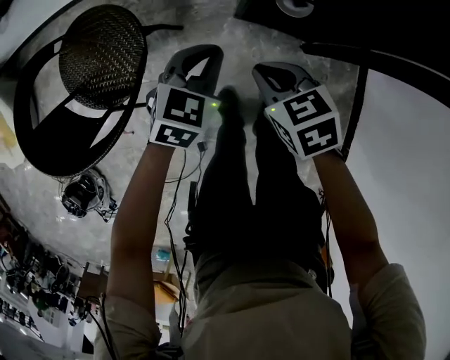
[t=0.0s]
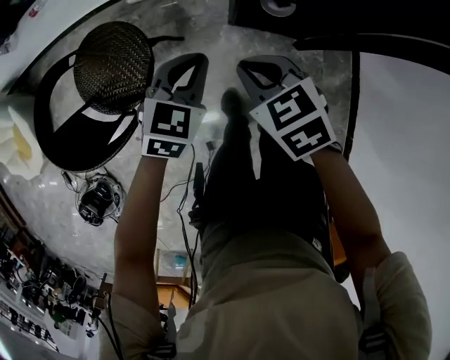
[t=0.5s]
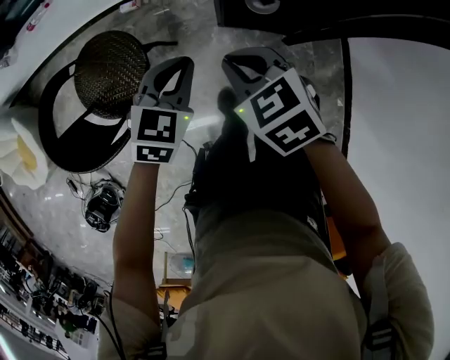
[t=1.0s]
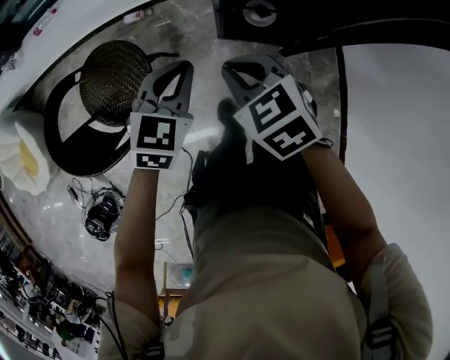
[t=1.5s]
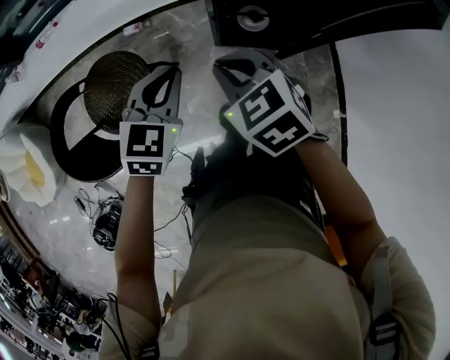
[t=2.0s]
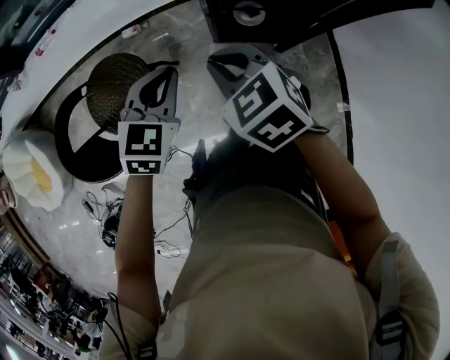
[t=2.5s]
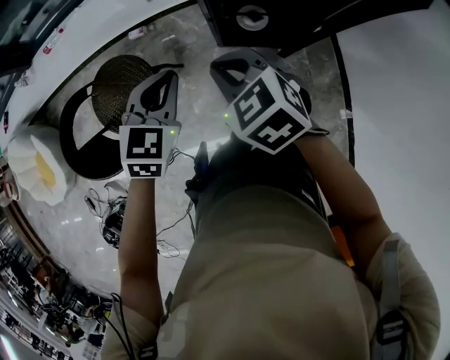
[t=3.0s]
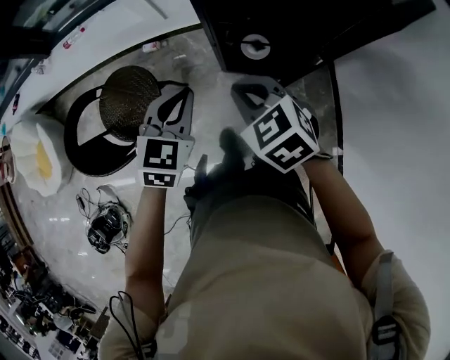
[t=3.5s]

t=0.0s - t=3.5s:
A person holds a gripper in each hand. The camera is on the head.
t=0.0s - t=2.0s: The grippers both shift upward by roughly 20 cm.
t=2.0s - t=3.5s: Both grippers travel together to the right, some 5 cm.

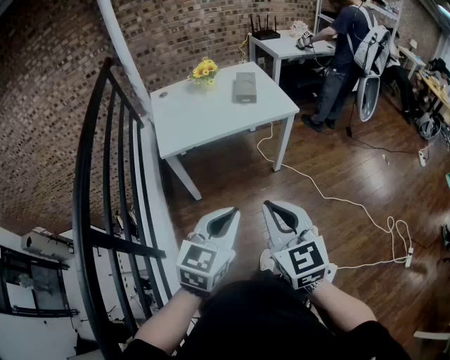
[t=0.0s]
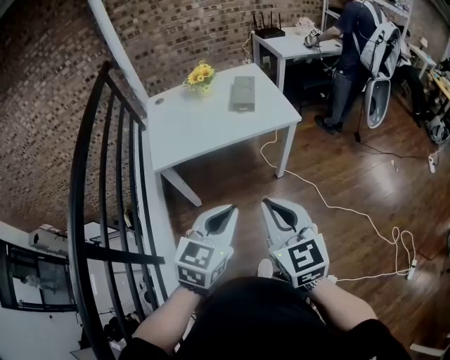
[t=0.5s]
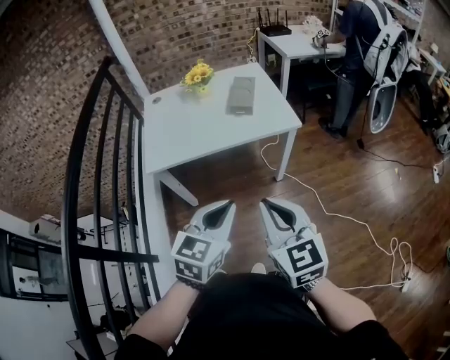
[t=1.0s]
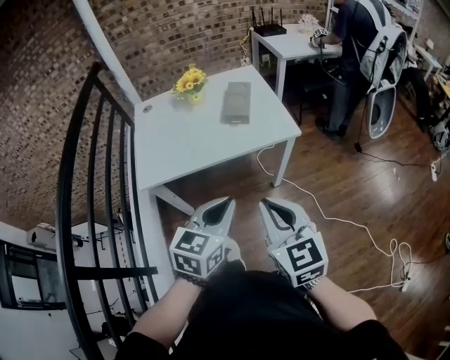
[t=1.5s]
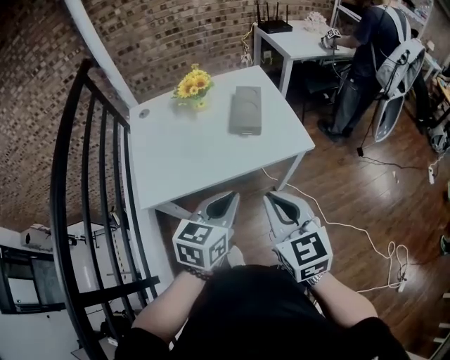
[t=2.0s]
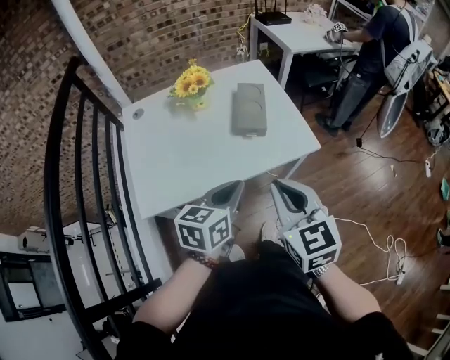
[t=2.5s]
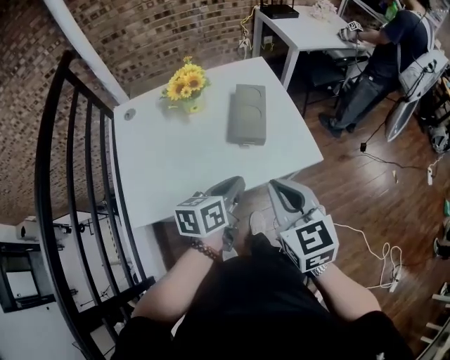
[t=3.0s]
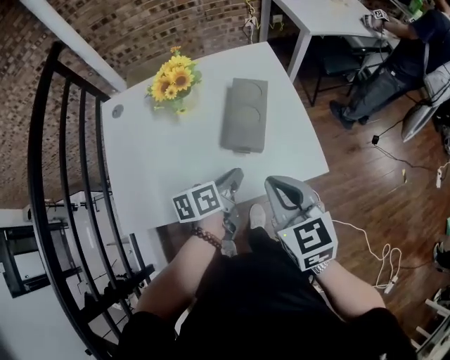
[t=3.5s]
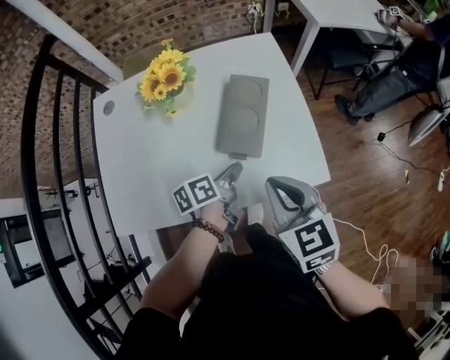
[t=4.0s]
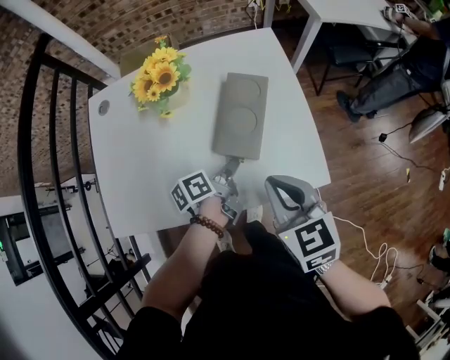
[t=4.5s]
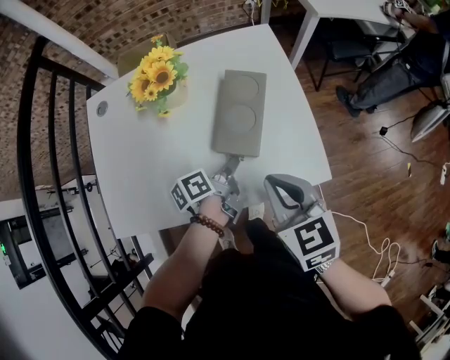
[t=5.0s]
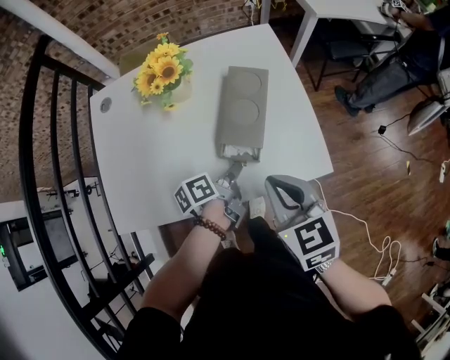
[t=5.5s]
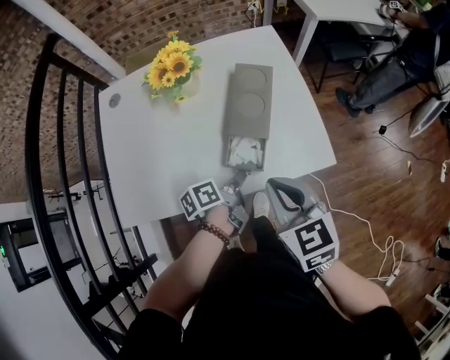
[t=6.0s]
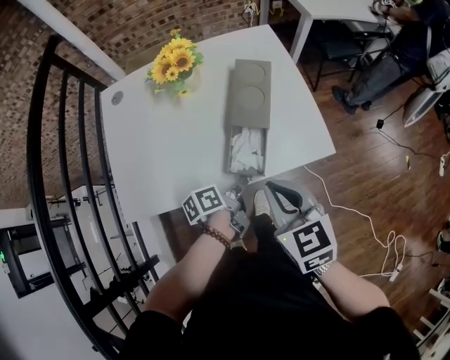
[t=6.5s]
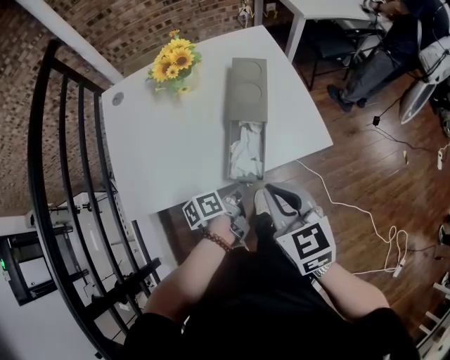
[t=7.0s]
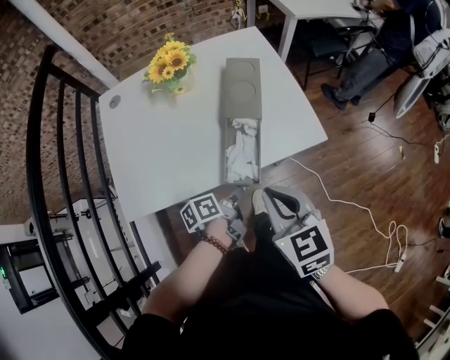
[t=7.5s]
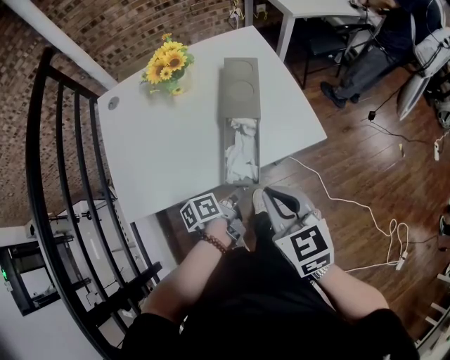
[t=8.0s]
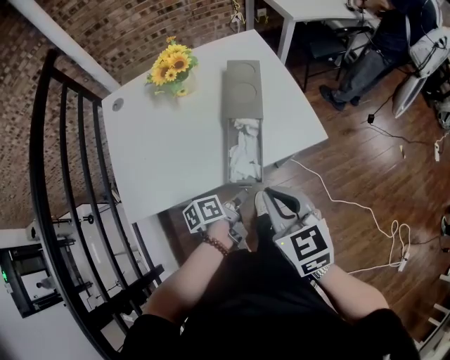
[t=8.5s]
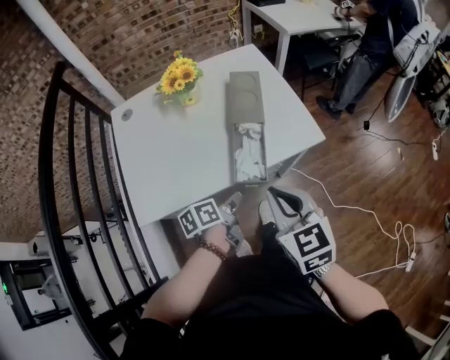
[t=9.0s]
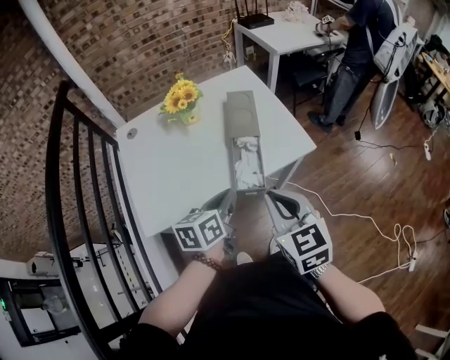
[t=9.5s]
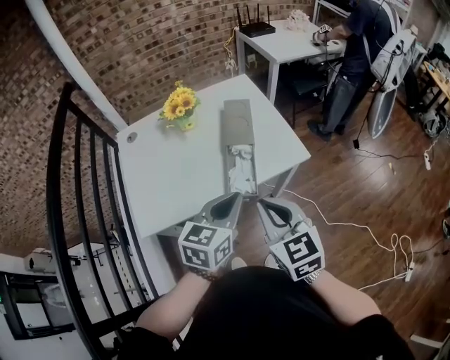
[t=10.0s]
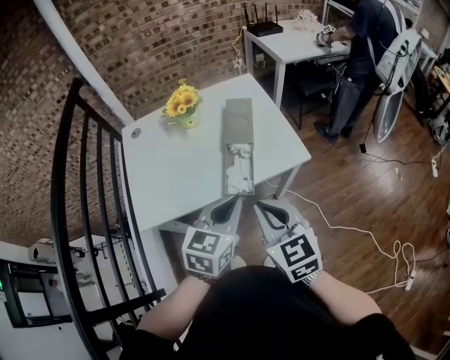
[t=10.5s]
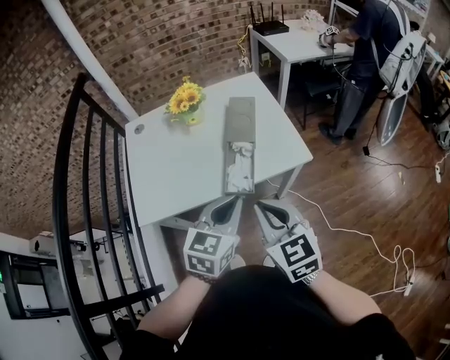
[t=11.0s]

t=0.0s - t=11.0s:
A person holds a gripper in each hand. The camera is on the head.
t=0.0s - t=2.0s: The two grippers go approximately 35 cm forward.
t=2.0s - t=3.5s: The left gripper goes some 30 cm forward and downward, and rolls counterclockwise, seen from behind, by roughly 50 degrees, while the right gripper moves forward, roughly 25 cm.
t=3.5s - t=5.5s: The left gripper shifts approximately 10 cm downward, and swivels some 20 degrees.
t=5.5s - t=7.5s: The grippers both shift backward by approximately 15 cm.
t=7.5s - t=9.0s: The left gripper moves roughly 5 cm.
t=9.0s - t=11.0s: The right gripper shifts by some 5 cm. Meanwhile the left gripper shifts roughly 20 cm upward, and twists approximately 60 degrees clockwise, seen from behind.

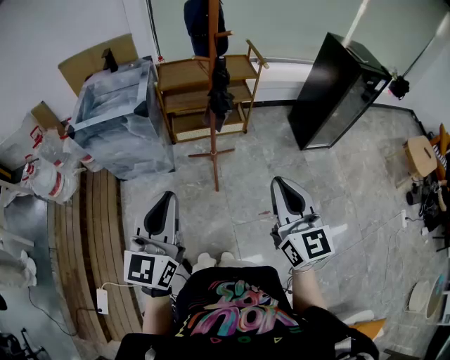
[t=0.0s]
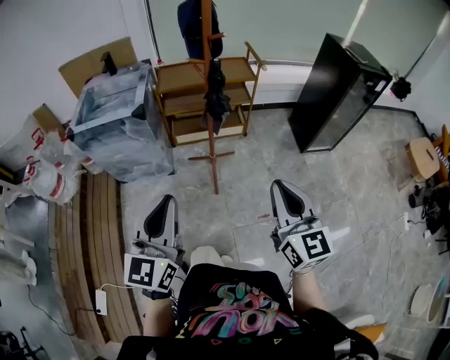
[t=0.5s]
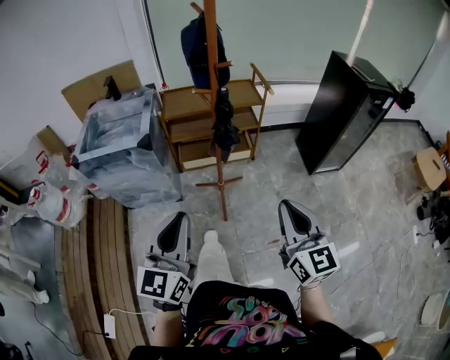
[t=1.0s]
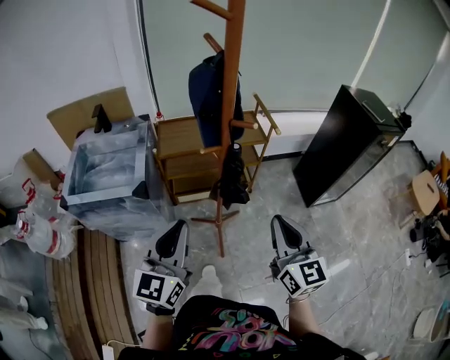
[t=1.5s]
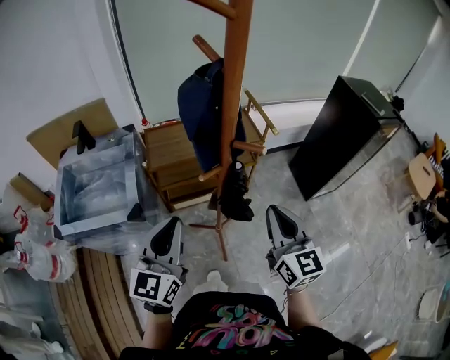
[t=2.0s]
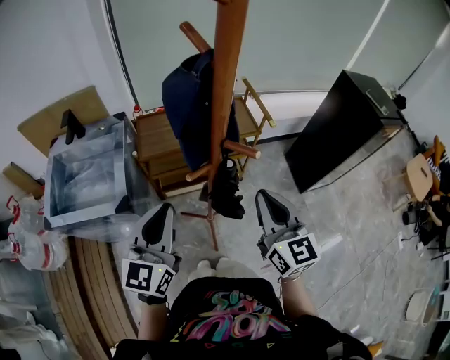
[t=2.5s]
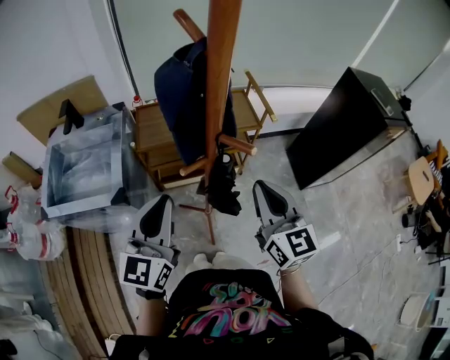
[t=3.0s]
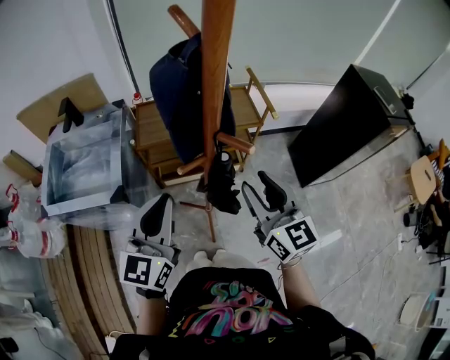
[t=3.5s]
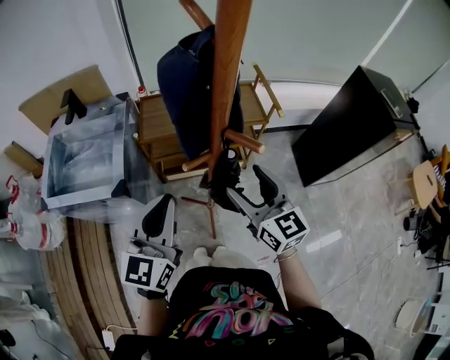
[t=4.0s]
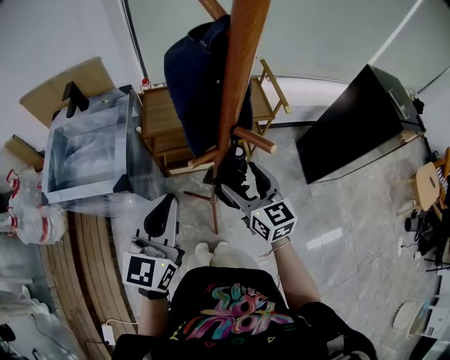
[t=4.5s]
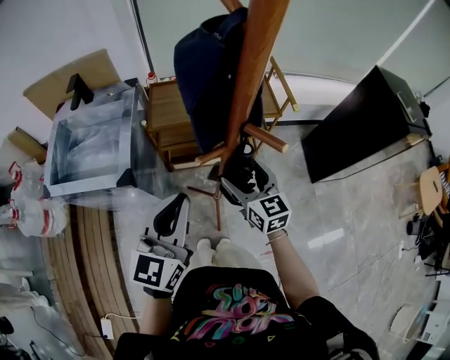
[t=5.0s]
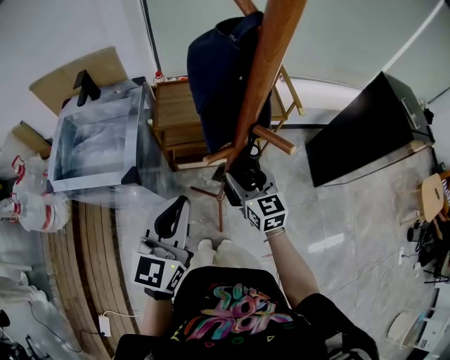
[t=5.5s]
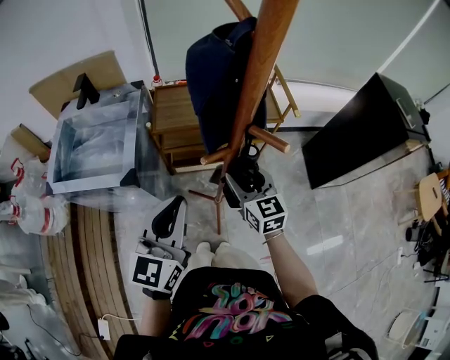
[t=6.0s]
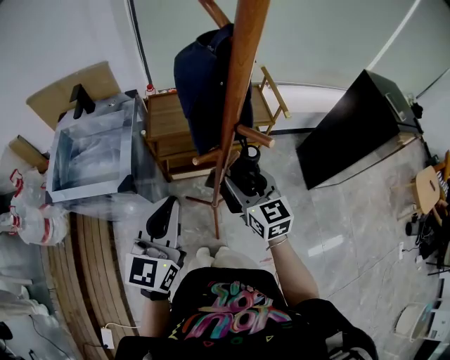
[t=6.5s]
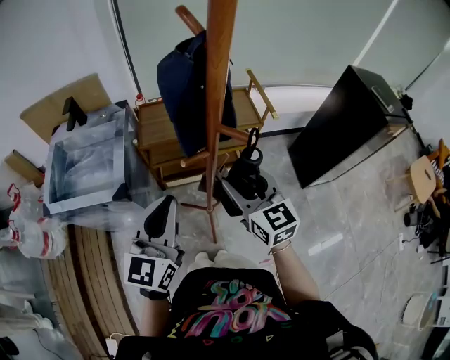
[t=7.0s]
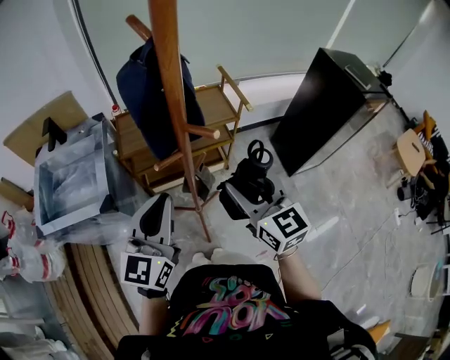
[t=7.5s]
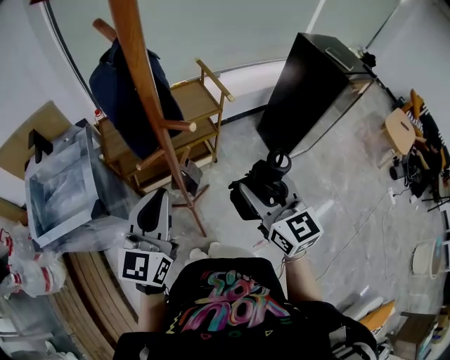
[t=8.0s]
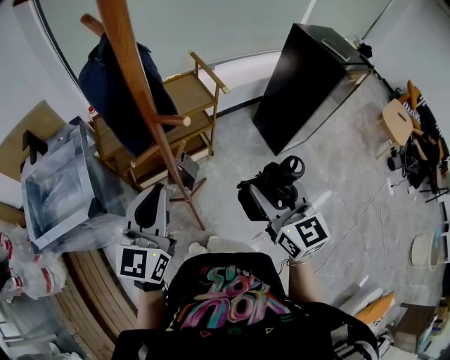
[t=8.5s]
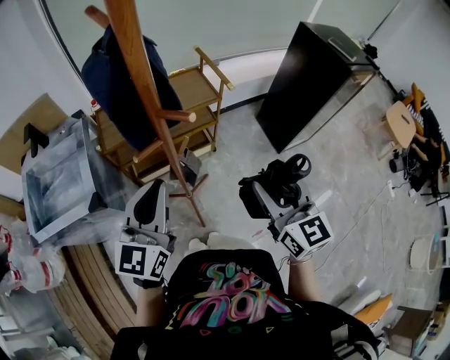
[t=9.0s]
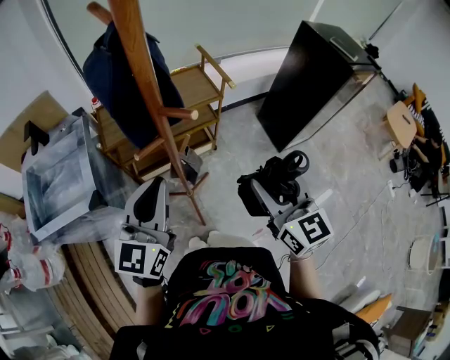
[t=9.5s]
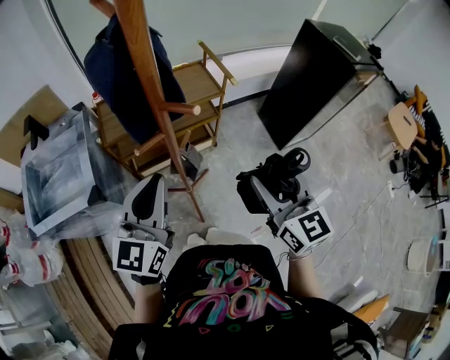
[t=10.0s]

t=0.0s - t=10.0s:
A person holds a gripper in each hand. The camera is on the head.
t=0.0s - t=2.0s: Both grippers are carried forward, approximately 40 cm.
t=2.0s - t=4.0s: The left gripper changes place by about 5 cm. Meanwhile the right gripper is displaced forward by some 10 cm, and opens.
t=4.0s - t=6.0s: The right gripper moves downward, roughly 10 cm.
t=6.0s - t=8.0s: The left gripper shifts approximately 10 cm to the right. The right gripper shifts roughly 25 cm to the right, backward and upward.
t=8.0s - t=10.0s: The grippers make only small movements.

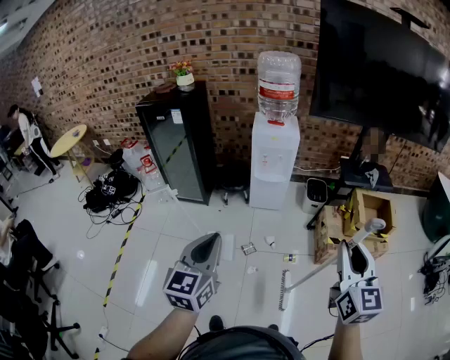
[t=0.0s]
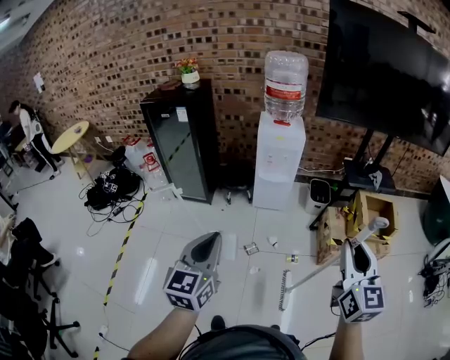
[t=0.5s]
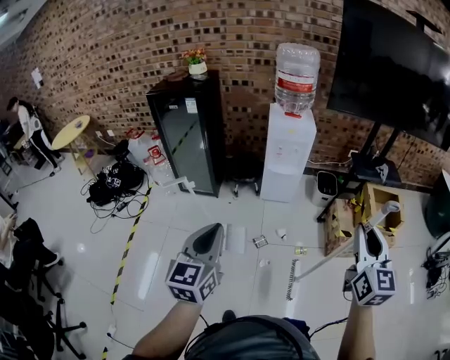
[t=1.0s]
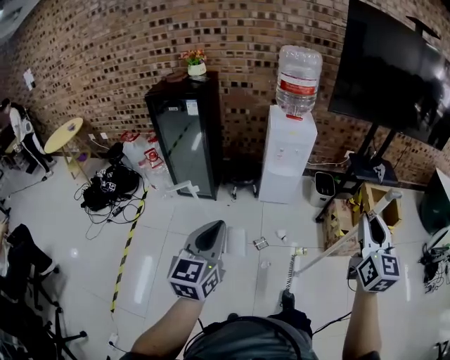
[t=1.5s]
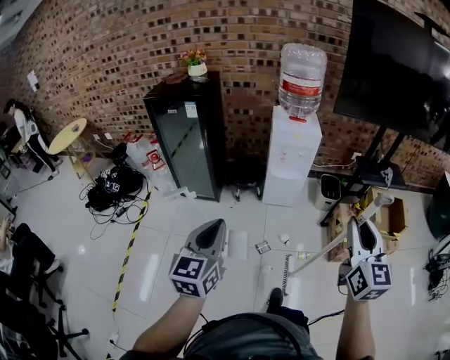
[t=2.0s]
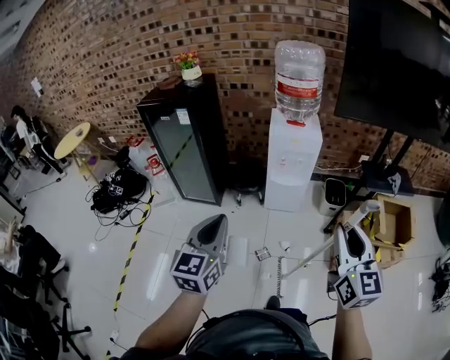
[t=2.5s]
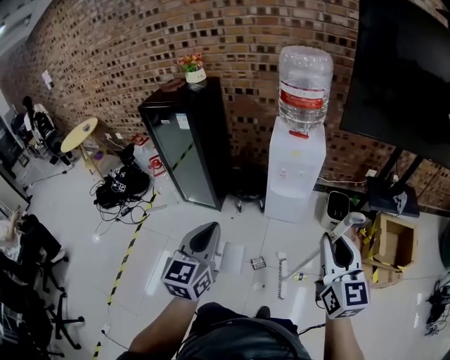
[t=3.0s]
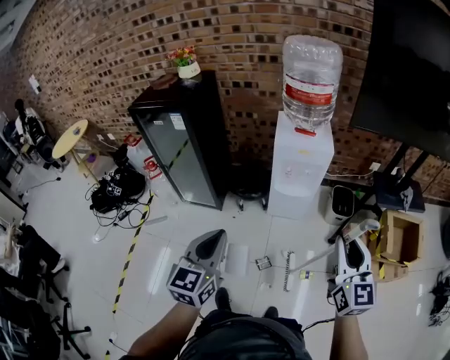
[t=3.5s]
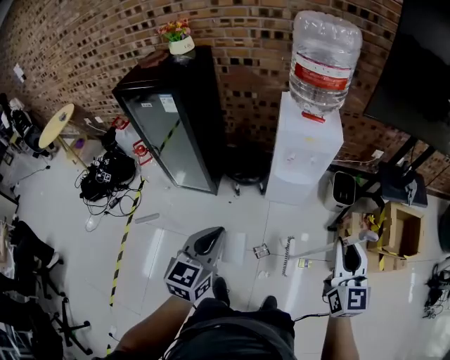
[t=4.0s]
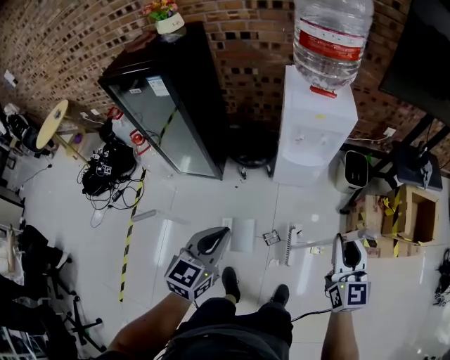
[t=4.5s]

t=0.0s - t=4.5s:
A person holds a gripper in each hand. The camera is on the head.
t=0.0s - t=2.0s: The grippers both shift to the left and forward by approximately 20 cm.
t=2.0s - t=4.5s: The grippers both shift forward and downward by roughly 40 cm.
